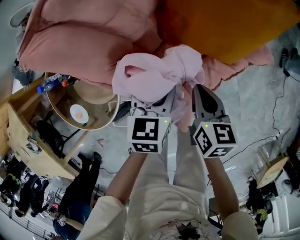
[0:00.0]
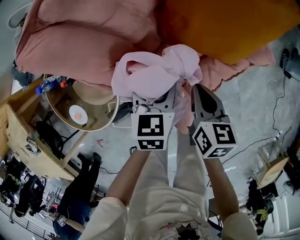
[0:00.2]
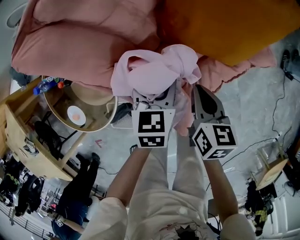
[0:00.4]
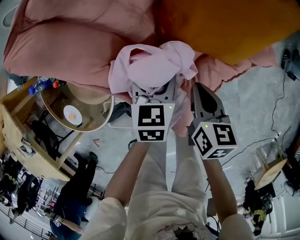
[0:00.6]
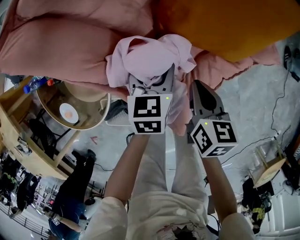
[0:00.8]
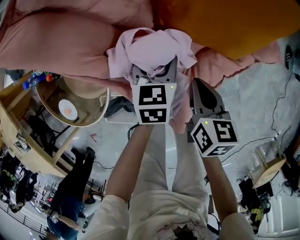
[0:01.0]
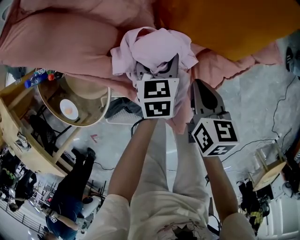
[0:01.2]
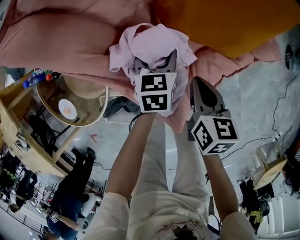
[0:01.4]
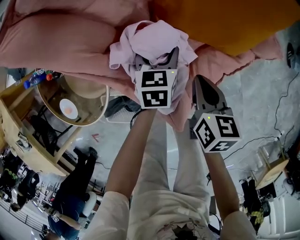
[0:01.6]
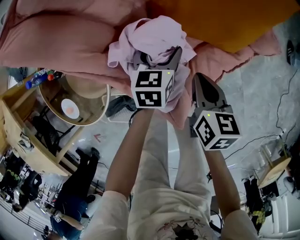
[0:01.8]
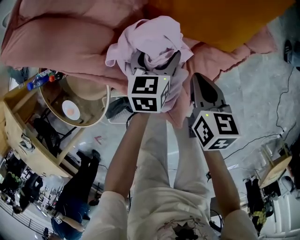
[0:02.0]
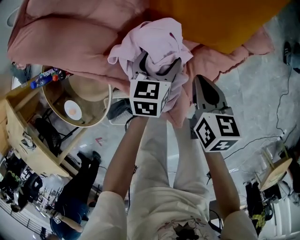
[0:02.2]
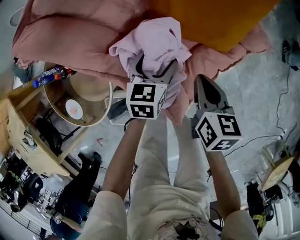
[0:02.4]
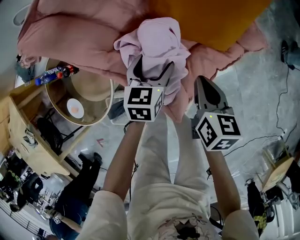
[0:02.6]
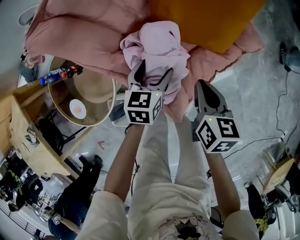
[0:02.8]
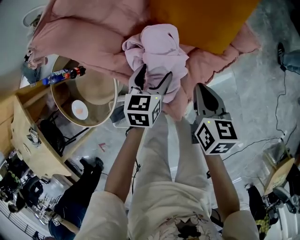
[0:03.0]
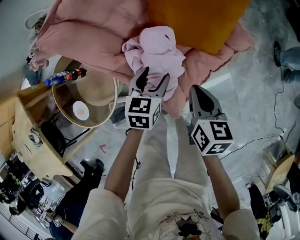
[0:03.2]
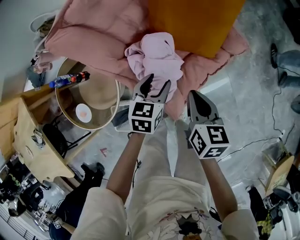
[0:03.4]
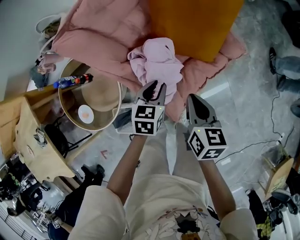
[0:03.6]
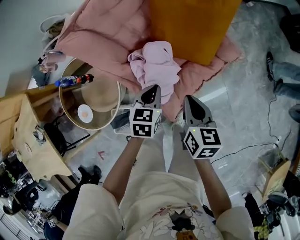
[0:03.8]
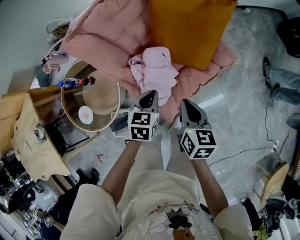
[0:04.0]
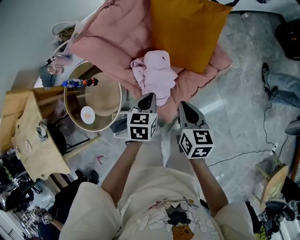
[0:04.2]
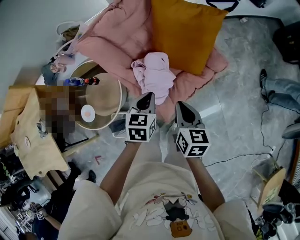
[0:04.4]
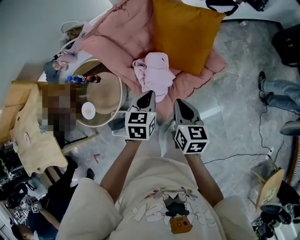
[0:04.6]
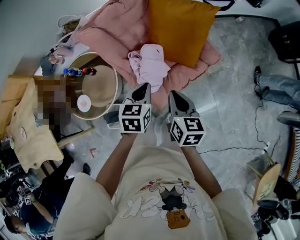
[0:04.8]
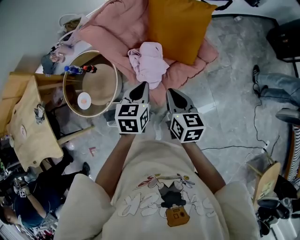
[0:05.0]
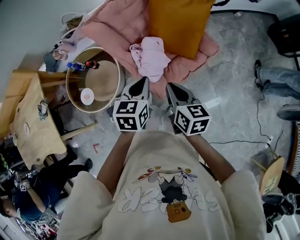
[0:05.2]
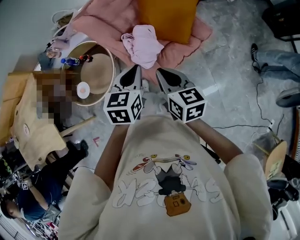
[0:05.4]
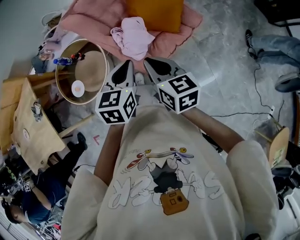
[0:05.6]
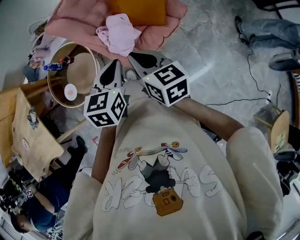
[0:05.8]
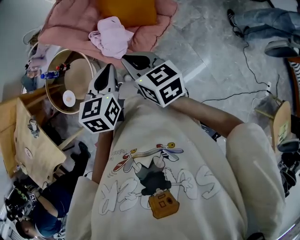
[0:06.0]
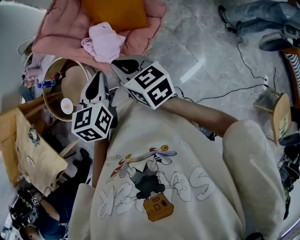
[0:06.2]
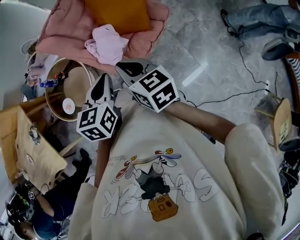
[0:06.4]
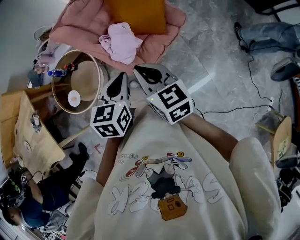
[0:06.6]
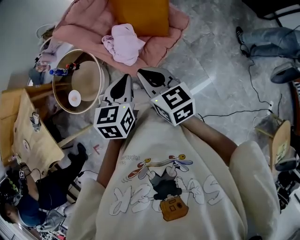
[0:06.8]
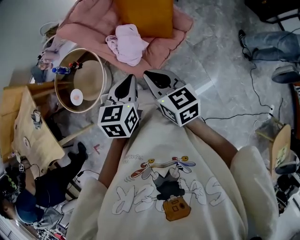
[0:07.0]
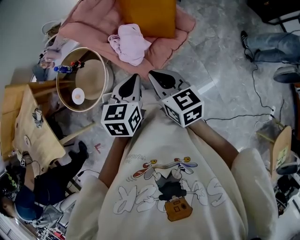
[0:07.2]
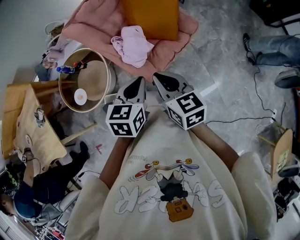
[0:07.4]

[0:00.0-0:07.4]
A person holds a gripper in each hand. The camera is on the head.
0:00.0 to 0:01.4: The left gripper travels downward by about 15 cm; the right gripper moves downward, roughly 5 cm.
0:01.4 to 0:03.0: The right gripper travels upward by some 10 cm; the left gripper is displaced upward and backward by some 15 cm, and opens its fingers.
0:03.0 to 0:04.4: Both grippers move upward and backward, roughly 20 cm. The left gripper closes up.
0:04.4 to 0:06.0: The grippers both shift backward and upward by roughly 20 cm.
0:06.0 to 0:07.4: There are only small adjustments of the grippers.

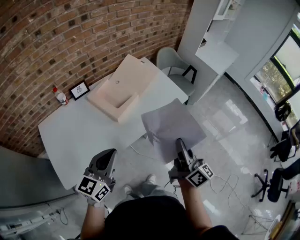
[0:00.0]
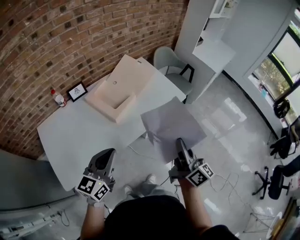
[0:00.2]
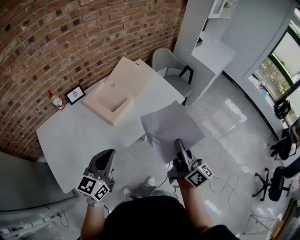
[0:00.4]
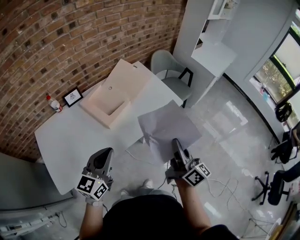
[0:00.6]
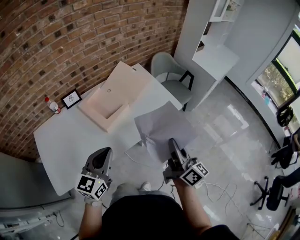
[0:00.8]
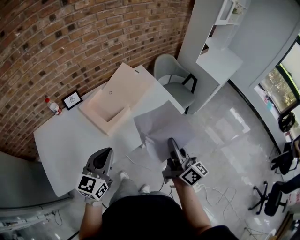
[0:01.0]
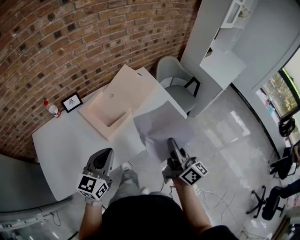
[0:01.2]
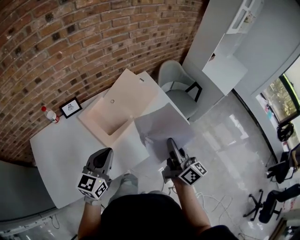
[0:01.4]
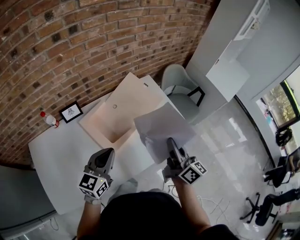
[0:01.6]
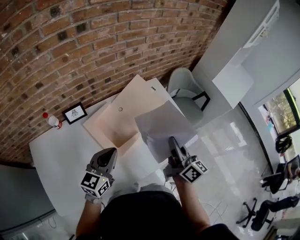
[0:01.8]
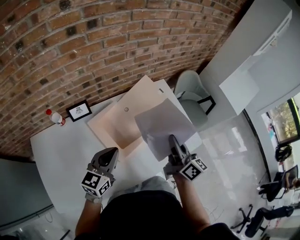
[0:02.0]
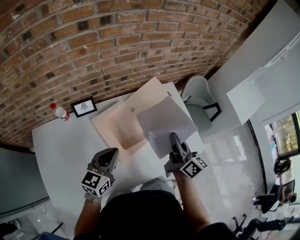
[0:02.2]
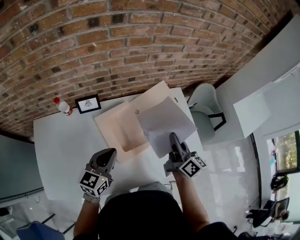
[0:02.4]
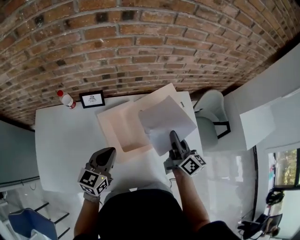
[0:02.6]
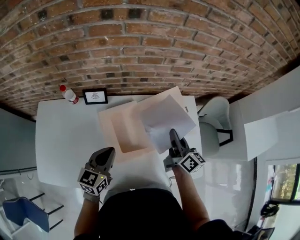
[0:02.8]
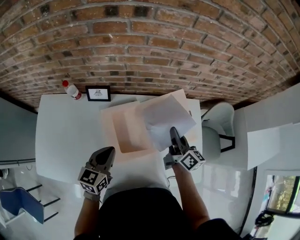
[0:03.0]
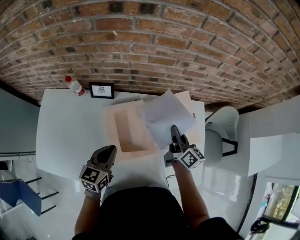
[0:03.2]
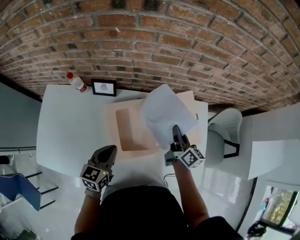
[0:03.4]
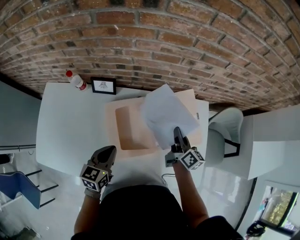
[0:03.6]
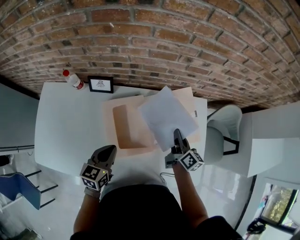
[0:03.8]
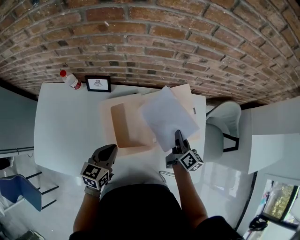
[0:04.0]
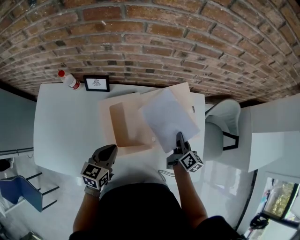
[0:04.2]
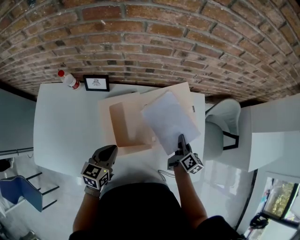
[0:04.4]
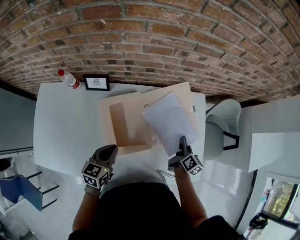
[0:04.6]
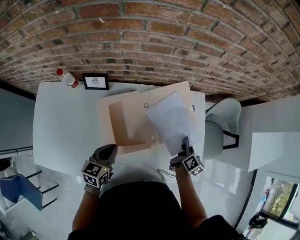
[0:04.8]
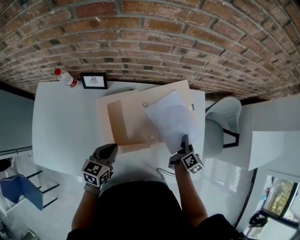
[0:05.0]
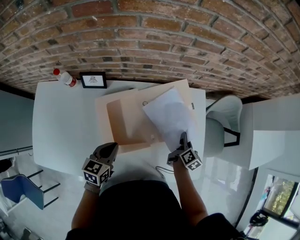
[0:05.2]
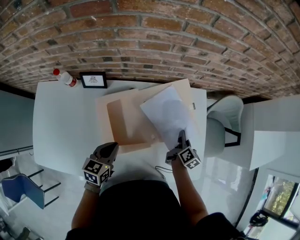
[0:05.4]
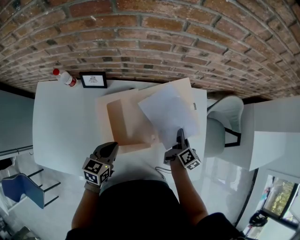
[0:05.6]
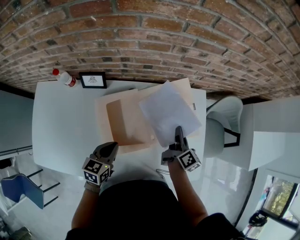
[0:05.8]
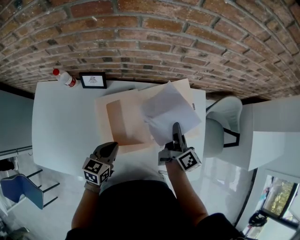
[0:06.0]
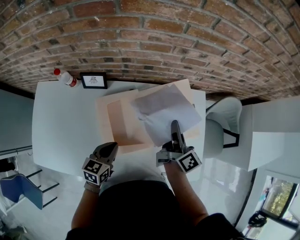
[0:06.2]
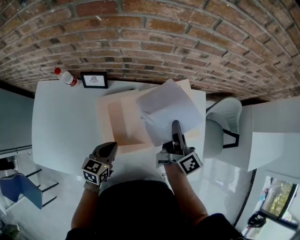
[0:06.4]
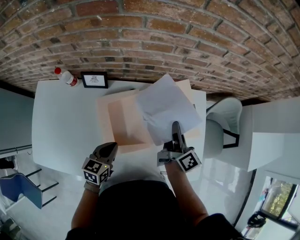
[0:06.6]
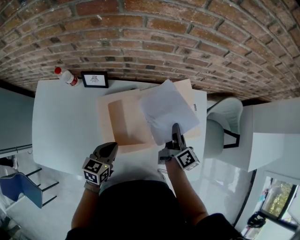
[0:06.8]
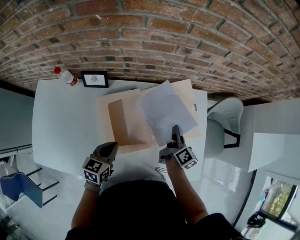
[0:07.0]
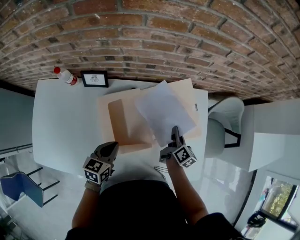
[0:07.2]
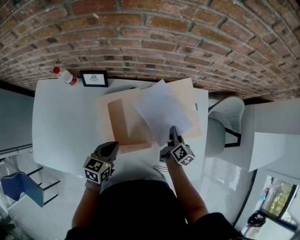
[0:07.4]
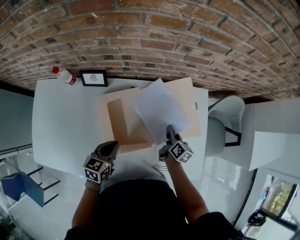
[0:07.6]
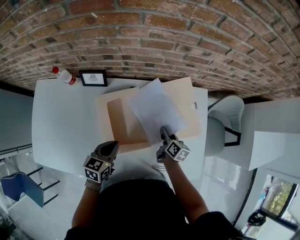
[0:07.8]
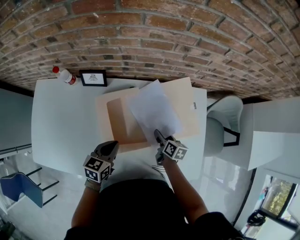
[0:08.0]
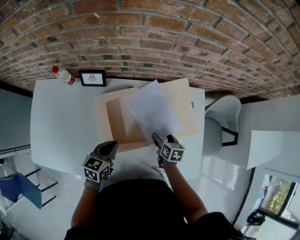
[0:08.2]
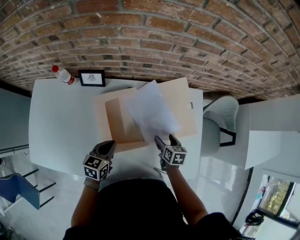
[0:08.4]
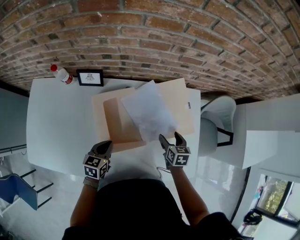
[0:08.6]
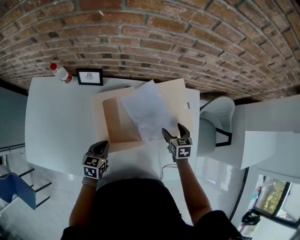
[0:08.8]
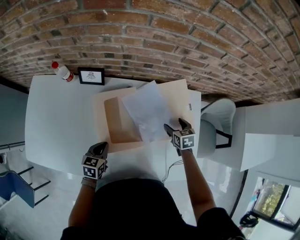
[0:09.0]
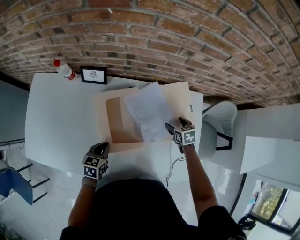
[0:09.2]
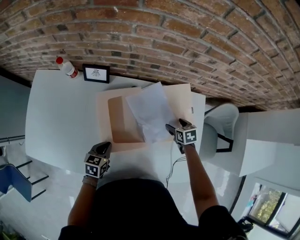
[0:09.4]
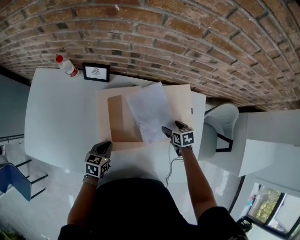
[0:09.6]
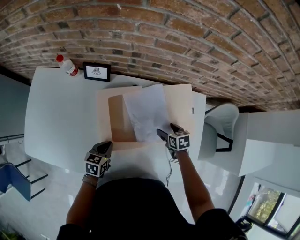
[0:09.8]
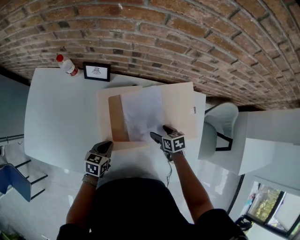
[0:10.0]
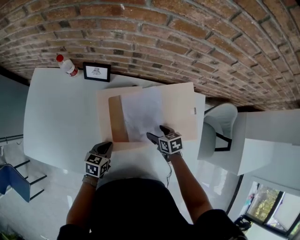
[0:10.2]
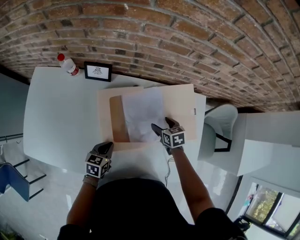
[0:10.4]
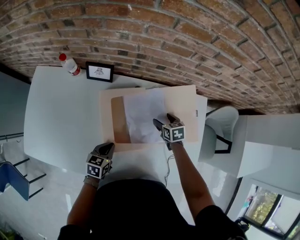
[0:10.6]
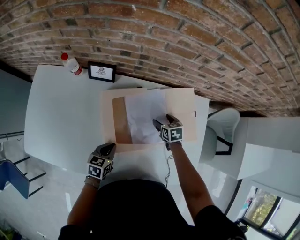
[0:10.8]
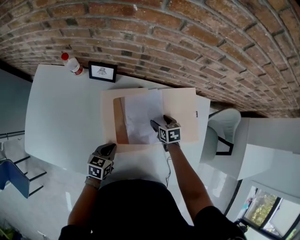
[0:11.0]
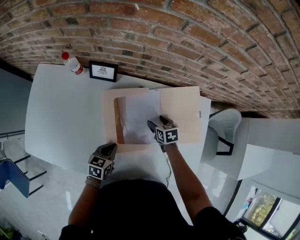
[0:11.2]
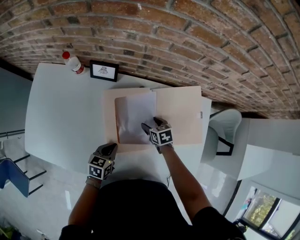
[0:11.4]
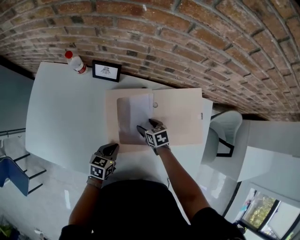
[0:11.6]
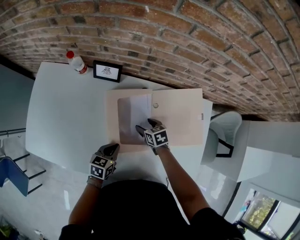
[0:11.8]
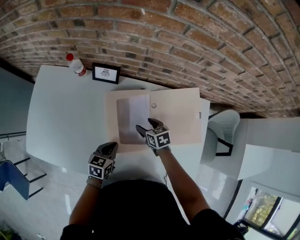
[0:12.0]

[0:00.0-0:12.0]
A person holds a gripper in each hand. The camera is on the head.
0:00.0 to 0:01.6: Both grippers travel together forward, approximately 25 cm.
0:01.6 to 0:03.0: The right gripper shifts by approximately 30 cm, and rotates roughly 30 degrees; the left gripper changes place by about 15 cm, and swivels roughly 40 degrees.
0:03.0 to 0:04.4: The right gripper shifts roughly 15 cm downward and to the right, and turns by approximately 20 degrees, while the left gripper shifts about 5 cm downward.
0:04.4 to 0:06.0: The right gripper heads upward and to the left, covering about 10 cm.
0:06.0 to 0:07.6: The right gripper heads downward, covering some 15 cm, and turns by about 20 degrees.
0:07.6 to 0:09.0: The right gripper reaches some 5 cm backward, then returns, rotates around the line of its fingers by approximately 50 degrees, counterclockwise from behind, and opens its fingers. The left gripper heads downward, covering some 5 cm.
0:09.0 to 0:10.4: The right gripper moves to the left, roughly 10 cm.
0:10.4 to 0:12.0: The right gripper travels to the left by approximately 10 cm.

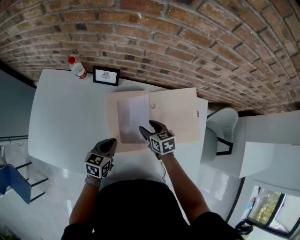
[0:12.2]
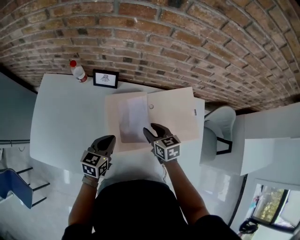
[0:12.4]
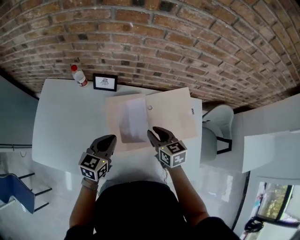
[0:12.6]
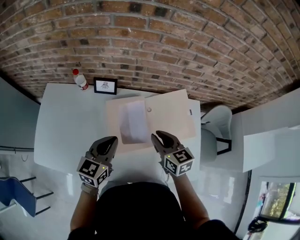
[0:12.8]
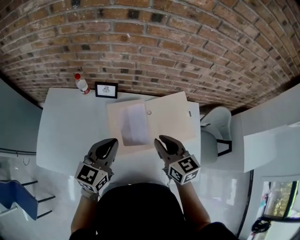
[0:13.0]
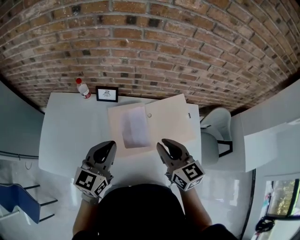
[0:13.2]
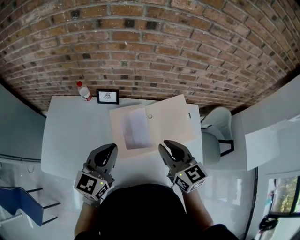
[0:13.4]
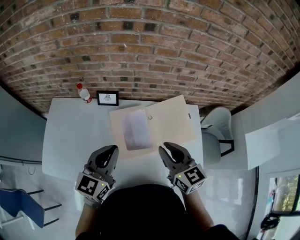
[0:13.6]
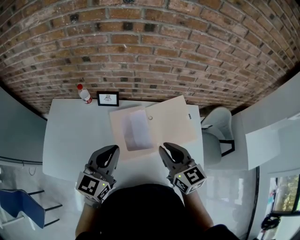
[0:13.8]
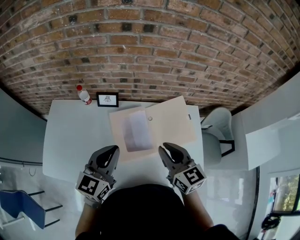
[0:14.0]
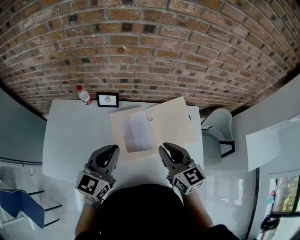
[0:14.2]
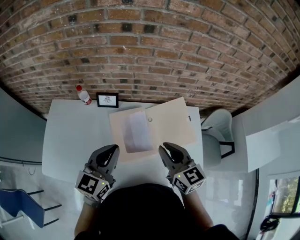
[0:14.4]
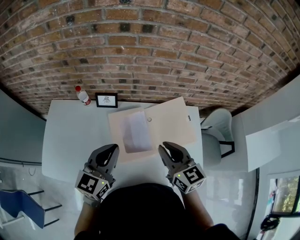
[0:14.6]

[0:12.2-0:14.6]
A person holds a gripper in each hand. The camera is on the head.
0:12.2 to 0:13.4: The left gripper goes roughly 25 cm upward, and changes its angle by roughly 30 degrees; the right gripper is displaced upward and backward by about 30 cm, swivels some 30 degrees, and closes its fingers.
0:13.4 to 0:14.6: There are only small adjustments of the grippers.

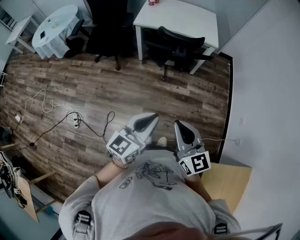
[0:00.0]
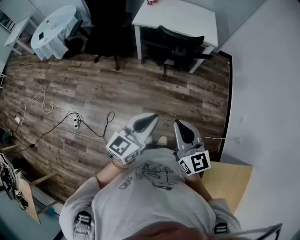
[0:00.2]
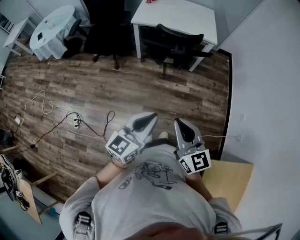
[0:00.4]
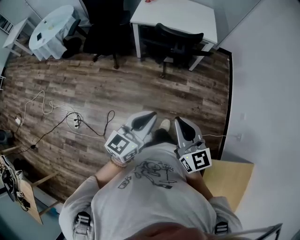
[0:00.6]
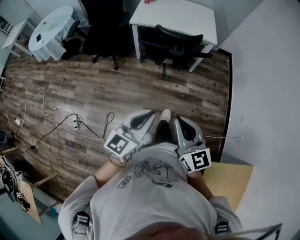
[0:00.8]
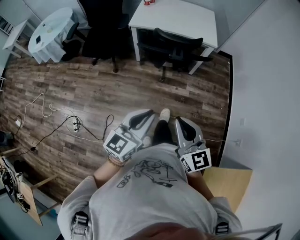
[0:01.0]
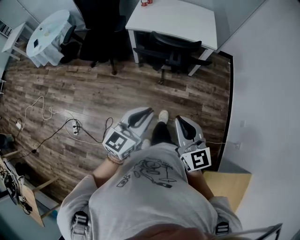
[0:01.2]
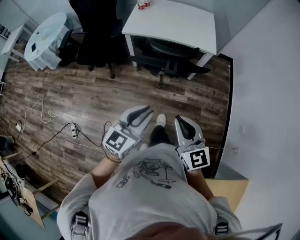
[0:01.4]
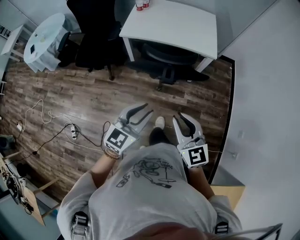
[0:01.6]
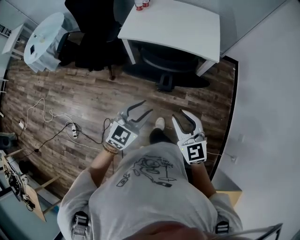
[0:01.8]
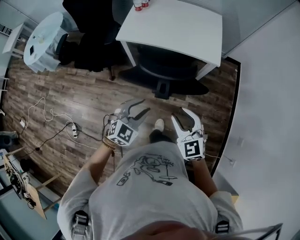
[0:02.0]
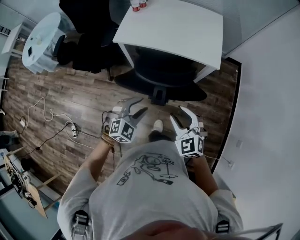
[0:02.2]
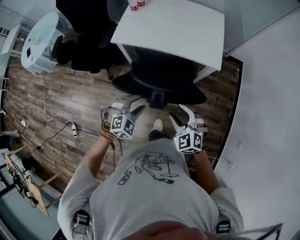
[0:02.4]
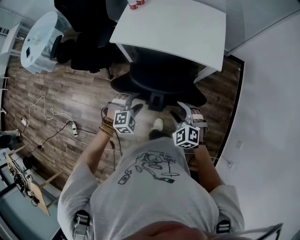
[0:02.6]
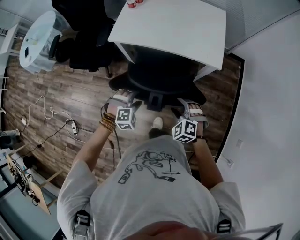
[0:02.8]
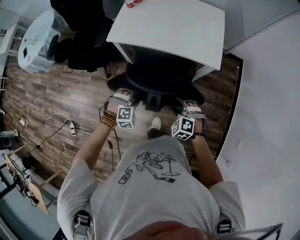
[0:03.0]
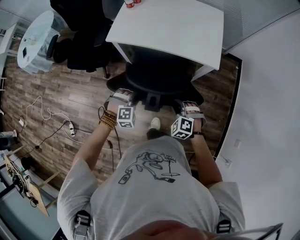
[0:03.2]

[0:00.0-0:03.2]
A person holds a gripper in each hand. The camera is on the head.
0:00.0 to 0:01.6: The grippers both shift forward by about 30 cm. The left gripper opens up.
0:01.6 to 0:03.2: The left gripper moves downward and forward, approximately 35 cm, angles its fingers downward, by about 50 degrees, and opens and closes again, while the right gripper heads forward and downward, covering some 35 cm, points its fingers roughly 40 degrees further downward, and opens and closes again.
